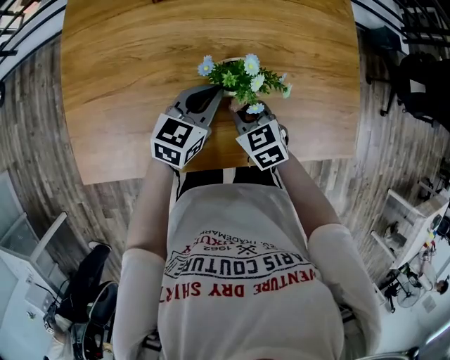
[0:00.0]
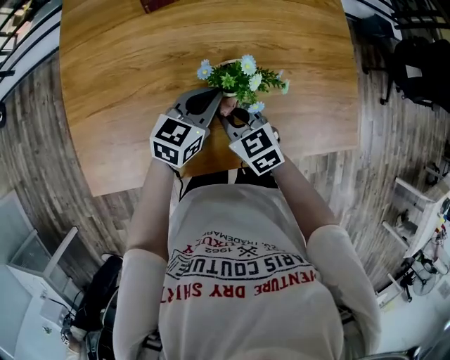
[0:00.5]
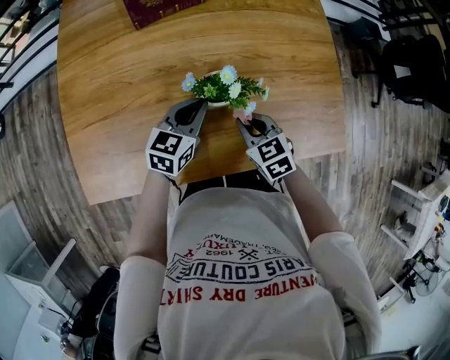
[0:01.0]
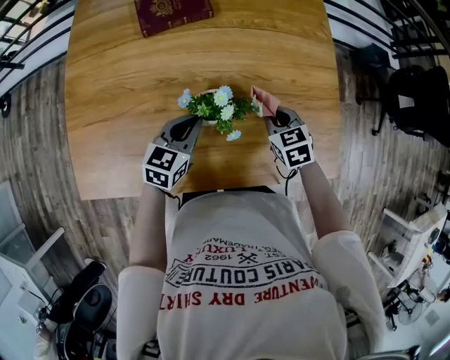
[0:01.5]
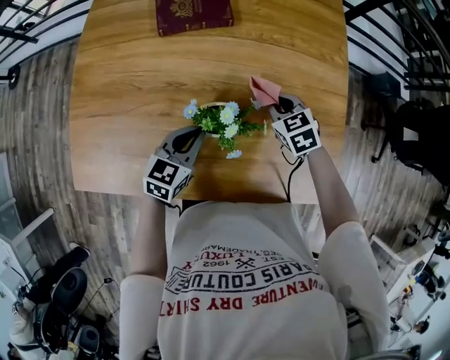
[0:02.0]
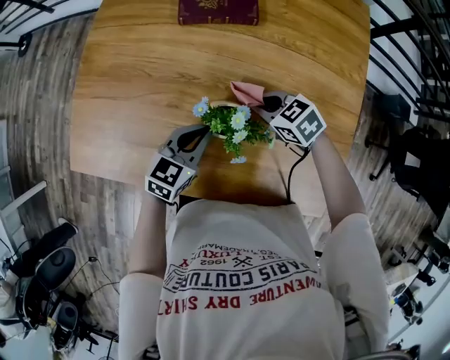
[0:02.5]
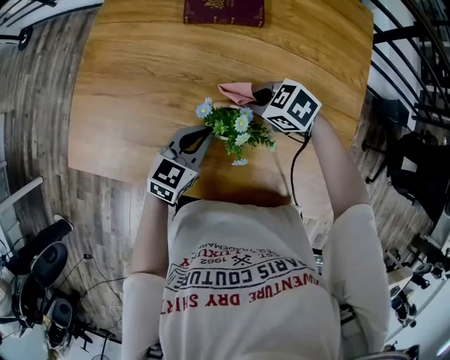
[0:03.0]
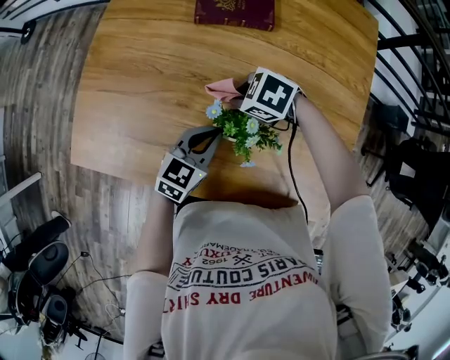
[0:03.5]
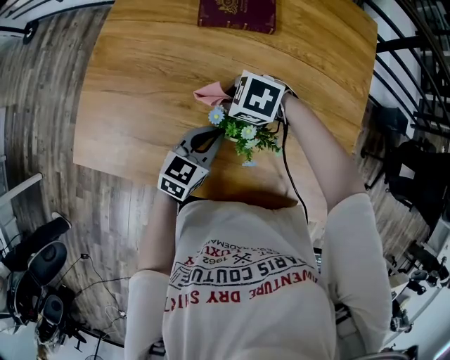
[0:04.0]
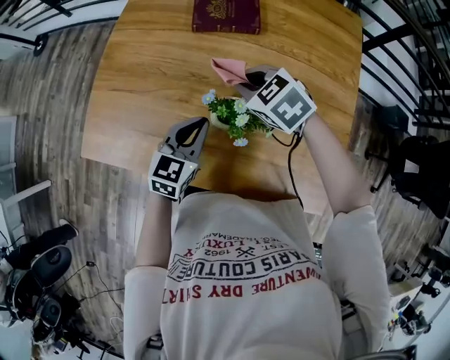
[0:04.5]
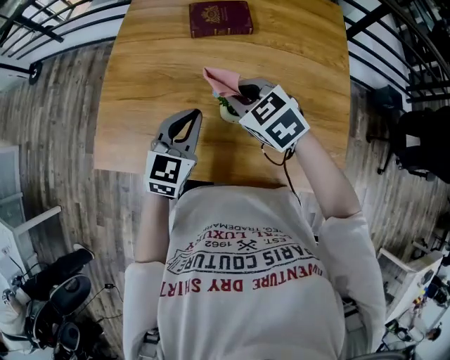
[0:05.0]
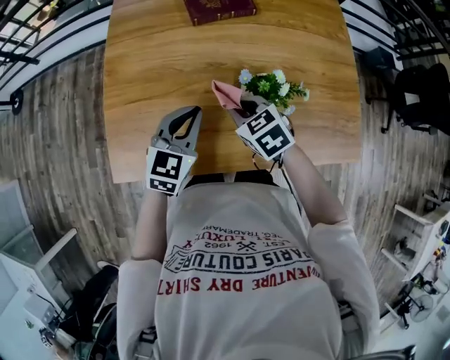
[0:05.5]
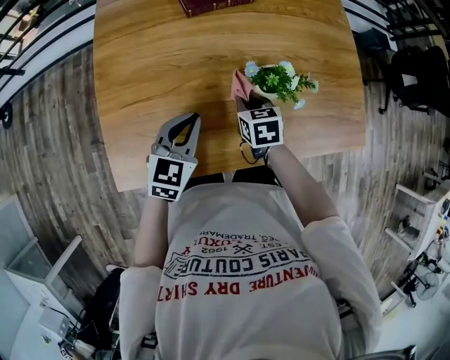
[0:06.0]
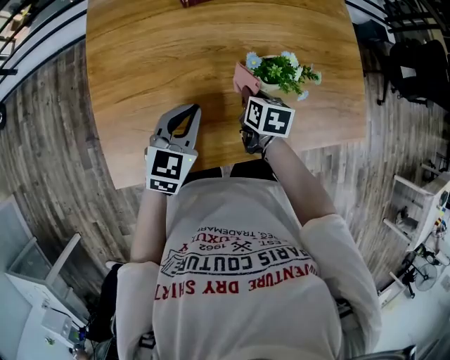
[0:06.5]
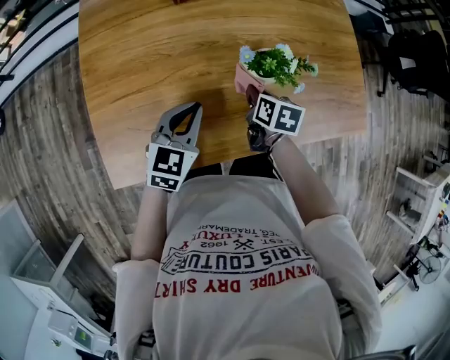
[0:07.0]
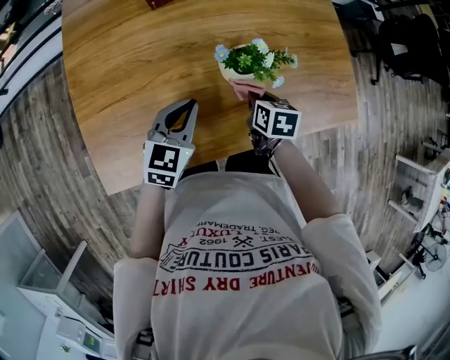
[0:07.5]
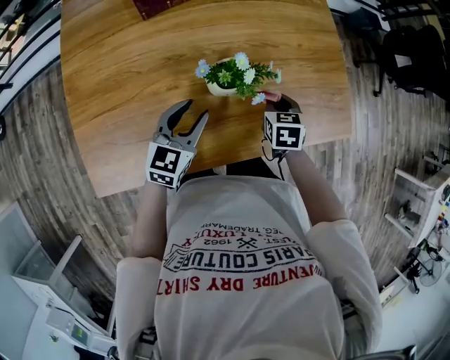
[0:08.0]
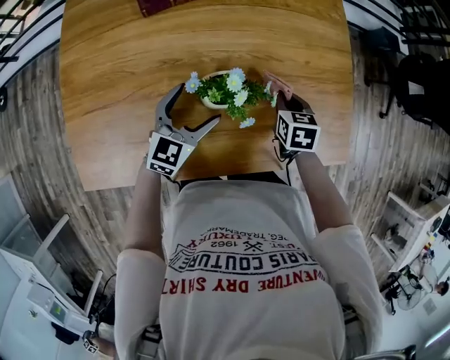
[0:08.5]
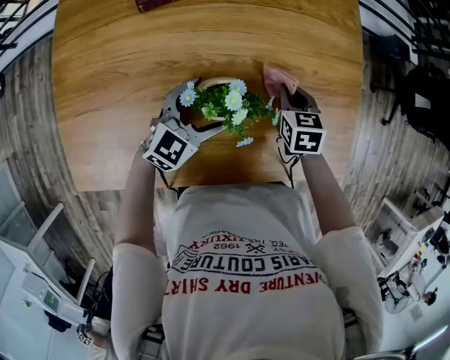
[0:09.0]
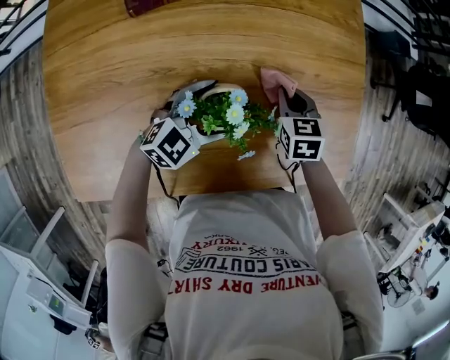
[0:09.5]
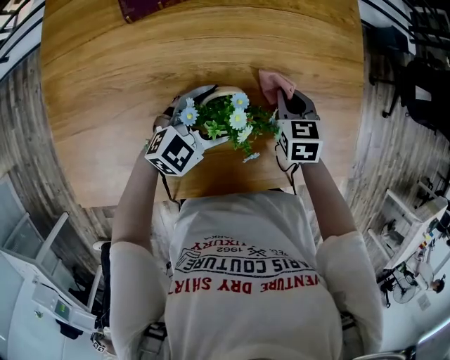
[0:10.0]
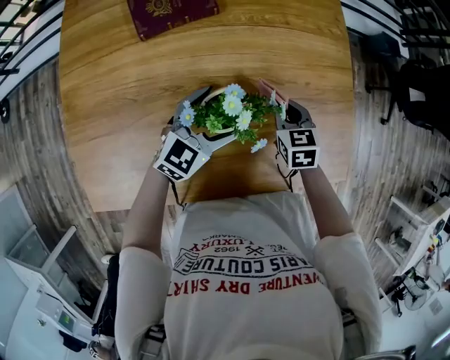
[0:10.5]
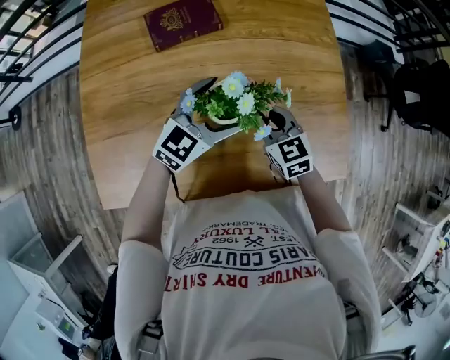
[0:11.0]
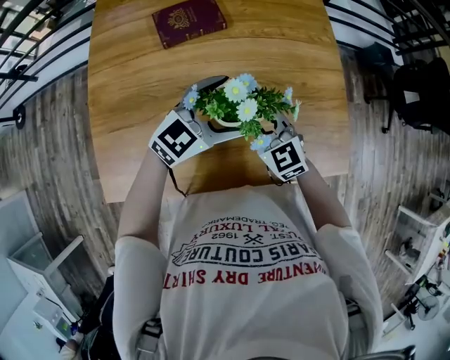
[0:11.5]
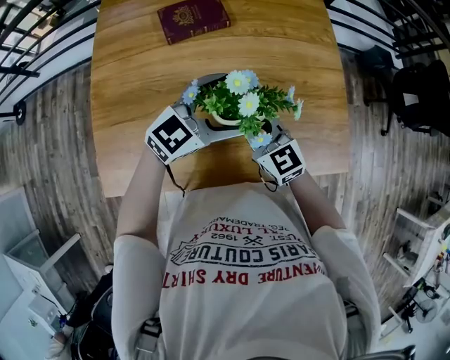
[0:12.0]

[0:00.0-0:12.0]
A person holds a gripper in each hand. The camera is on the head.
0:00.0 to 0:02.0: The right gripper heads forward and to the right, covering about 20 cm.
0:02.0 to 0:04.0: The right gripper ends up about 20 cm from where it was, and turns by roughly 60 degrees.
0:04.0 to 0:06.0: The left gripper ends up approximately 15 cm from where it was, and changes its angle by roughly 20 degrees, while the right gripper reaches some 15 cm upward, then returns, and swivels roughly 90 degrees.
0:06.0 to 0:08.0: The left gripper heads to the right, covering roughly 10 cm. Meanwhile the right gripper heads to the right, covering approximately 20 cm.
0:08.0 to 0:10.0: The right gripper heads forward, covering about 10 cm; the left gripper is displaced forward and to the right by approximately 10 cm, rotates approximately 30 degrees, and opens up.
0:10.0 to 0:12.0: The right gripper goes about 25 cm upward, backward and to the left, and points its fingers about 30 degrees further upward. Meanwhile the left gripper moves upward, about 20 cm.

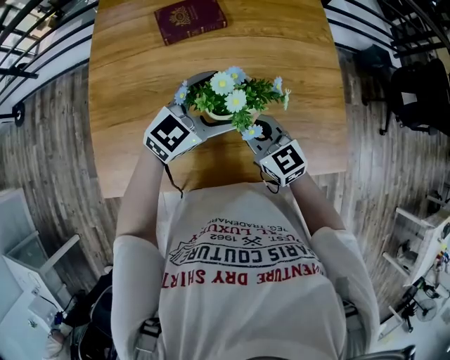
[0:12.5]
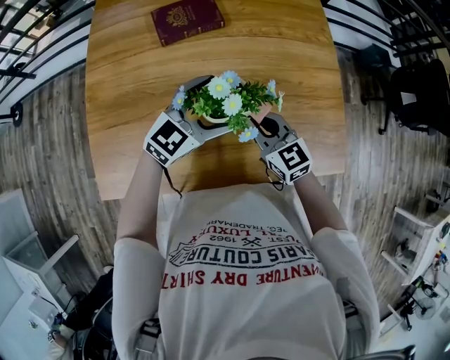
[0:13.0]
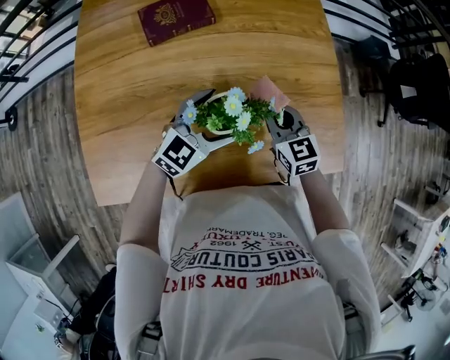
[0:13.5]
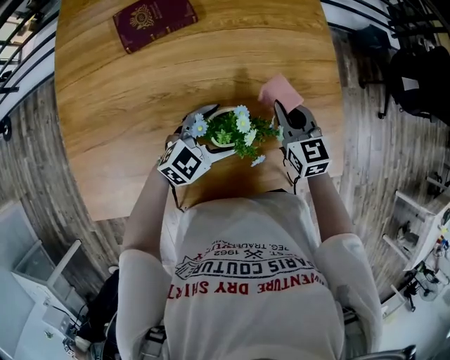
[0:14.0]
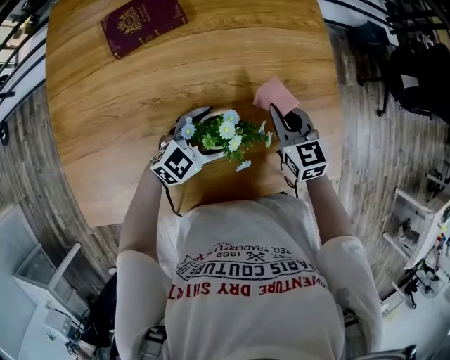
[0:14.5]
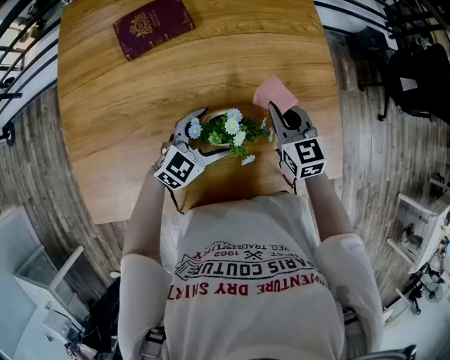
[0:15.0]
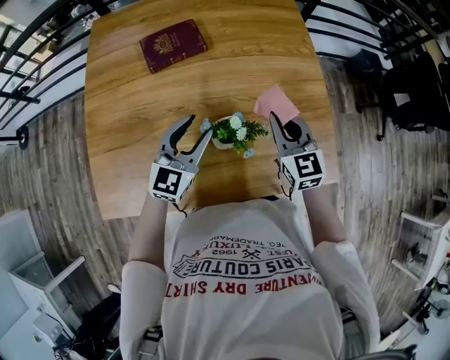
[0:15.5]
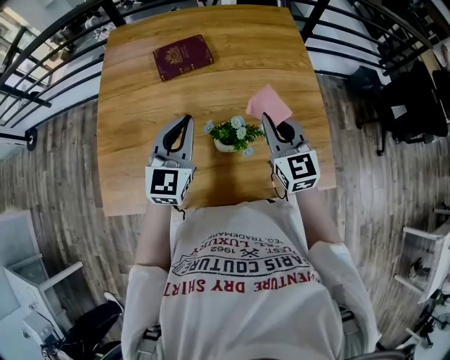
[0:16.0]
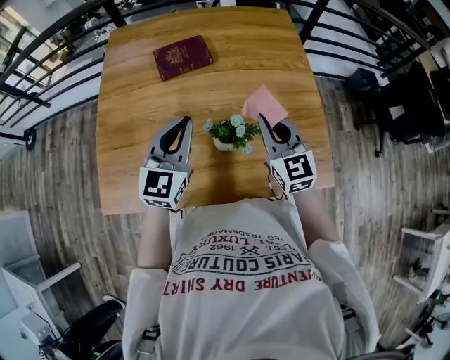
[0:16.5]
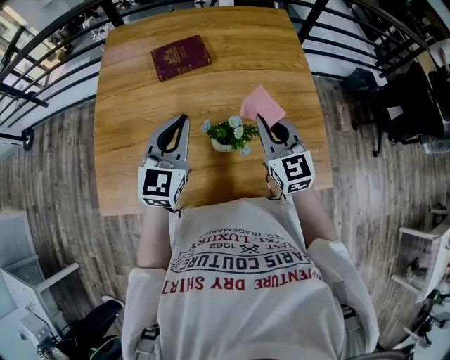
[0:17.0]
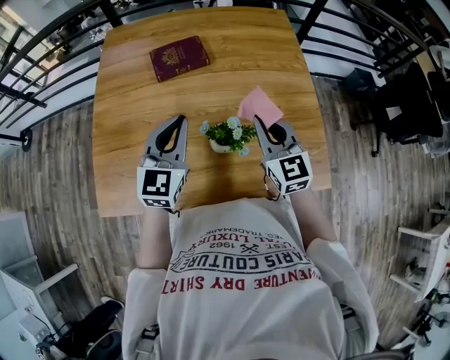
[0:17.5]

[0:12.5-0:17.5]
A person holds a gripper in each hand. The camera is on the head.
0:12.5 to 0:15.0: The left gripper heads downward, covering about 15 cm. The right gripper shifts approximately 20 cm to the right, forward and downward, and turns by some 20 degrees.
0:15.0 to 0:17.5: The right gripper is displaced upward by some 15 cm. The left gripper travels upward and to the left by about 25 cm, changes its angle by about 40 degrees, and closes its fingers.

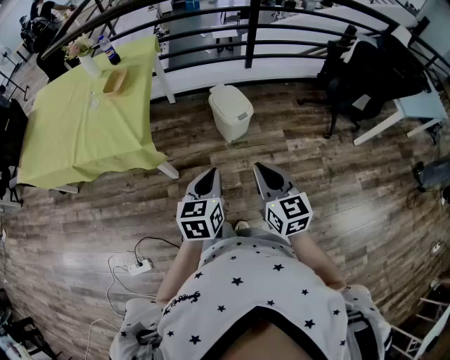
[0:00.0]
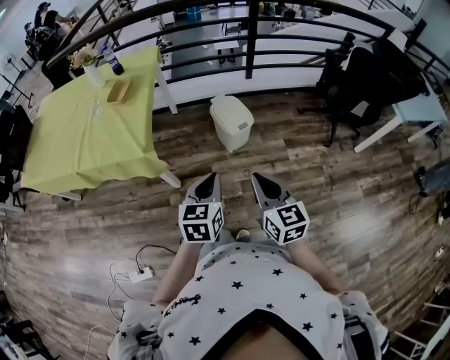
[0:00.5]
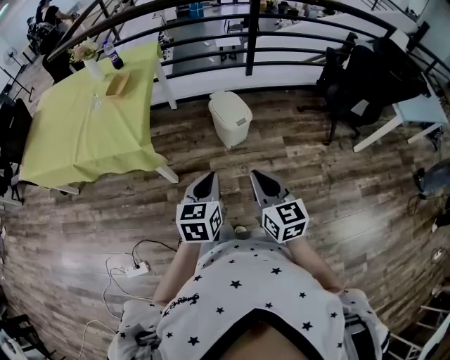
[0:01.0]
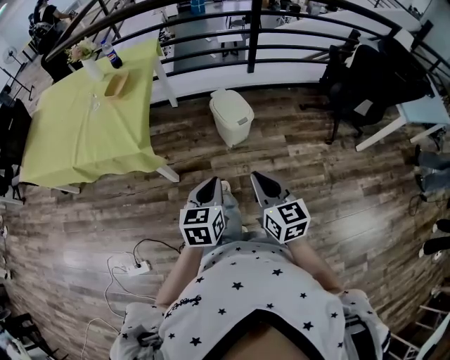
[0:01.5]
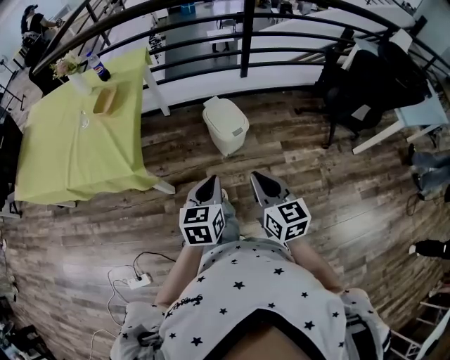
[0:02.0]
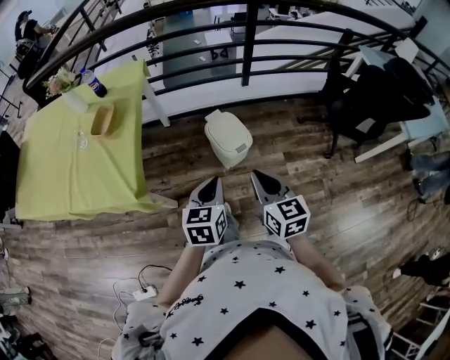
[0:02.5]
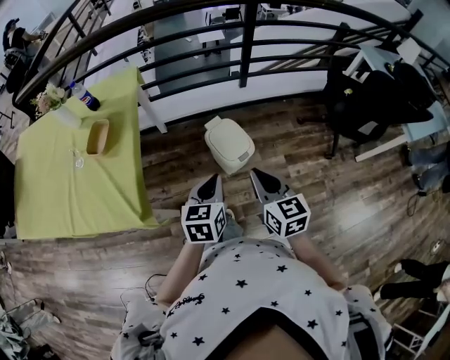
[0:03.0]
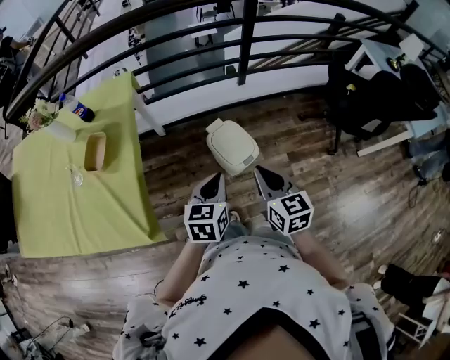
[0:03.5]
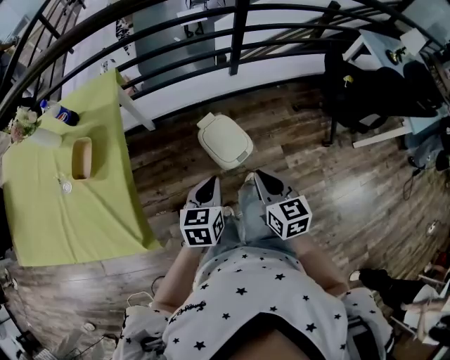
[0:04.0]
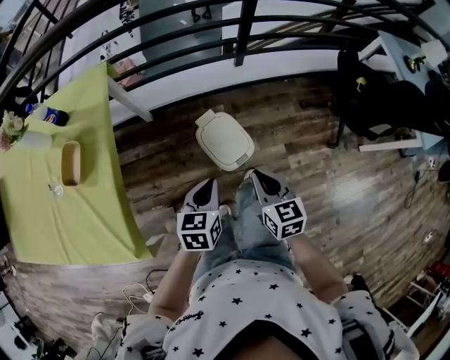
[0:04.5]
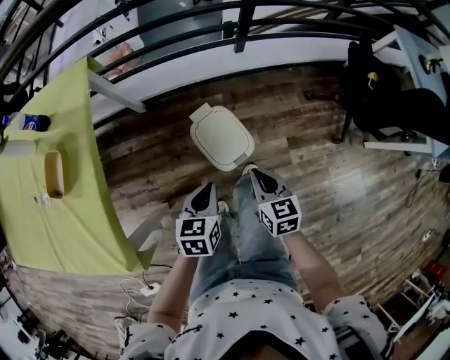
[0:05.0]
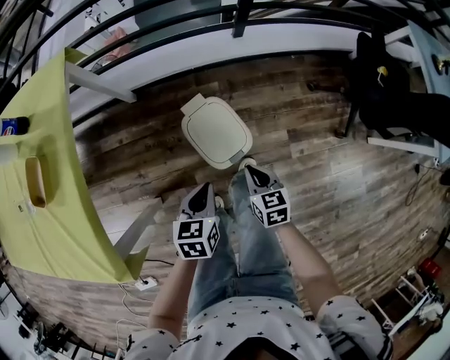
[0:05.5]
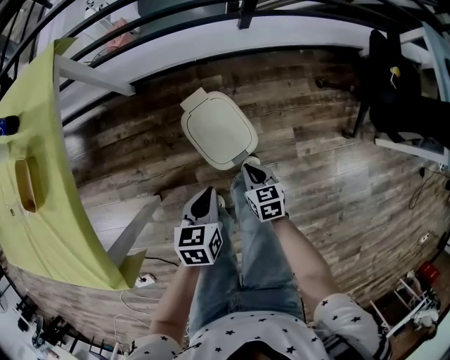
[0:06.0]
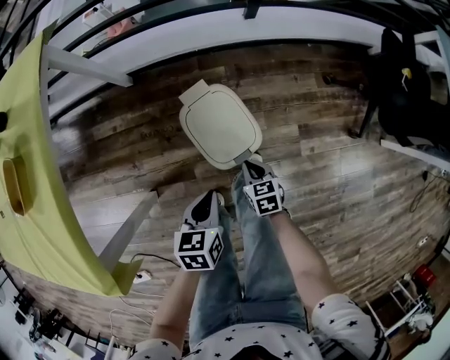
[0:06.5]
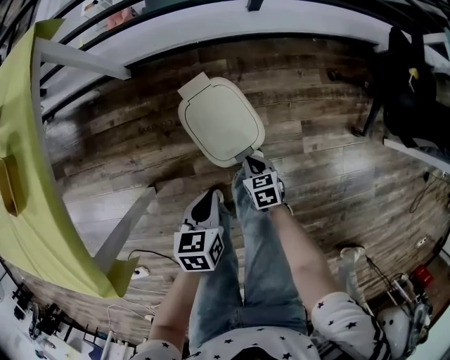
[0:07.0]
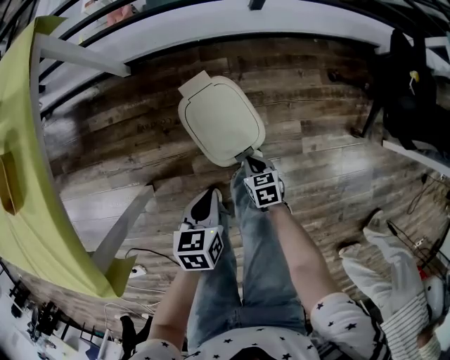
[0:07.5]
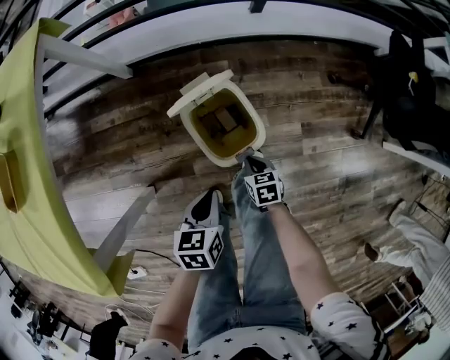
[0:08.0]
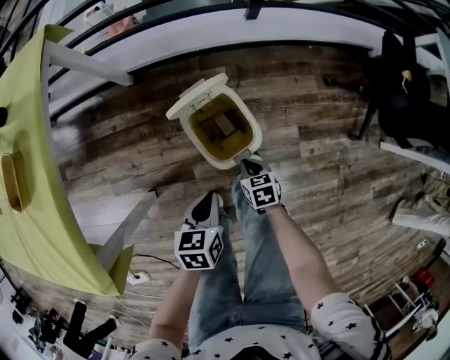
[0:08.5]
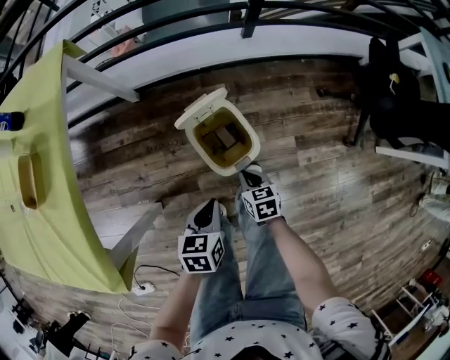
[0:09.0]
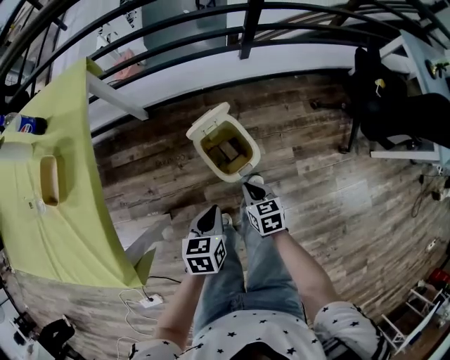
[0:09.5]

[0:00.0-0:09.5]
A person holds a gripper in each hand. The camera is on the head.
0:00.0 to 0:02.0: Both grippers move forward, approximately 5 cm.
0:02.0 to 0:04.0: Both grippers move forward, approximately 30 cm.
0:04.0 to 0:05.5: The two grippers go roughly 25 cm downward and forward.
0:05.5 to 0:07.5: The left gripper is displaced downward by some 10 cm, while the right gripper is displaced downward by roughly 20 cm.
0:07.5 to 0:09.5: The left gripper shifts about 10 cm upward. Meanwhile the right gripper is displaced upward by some 20 cm.
